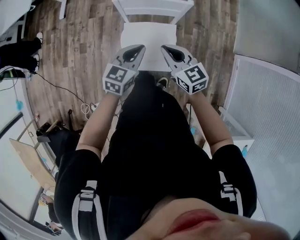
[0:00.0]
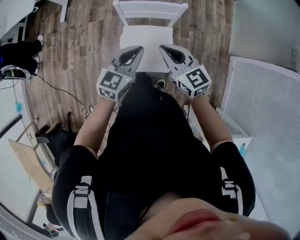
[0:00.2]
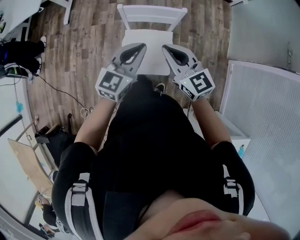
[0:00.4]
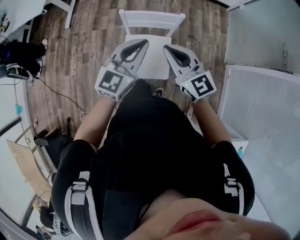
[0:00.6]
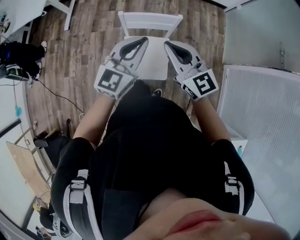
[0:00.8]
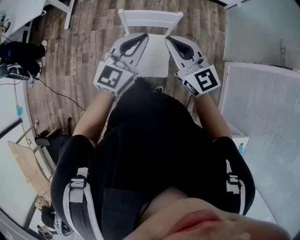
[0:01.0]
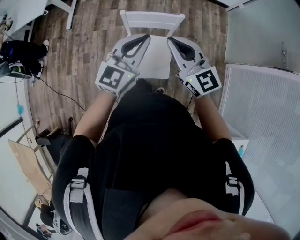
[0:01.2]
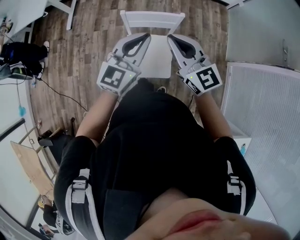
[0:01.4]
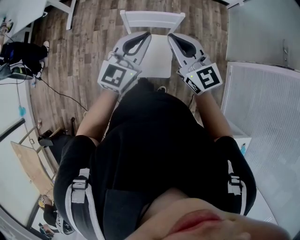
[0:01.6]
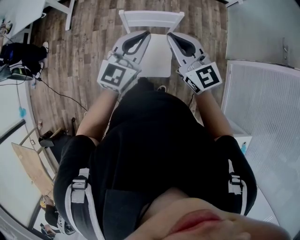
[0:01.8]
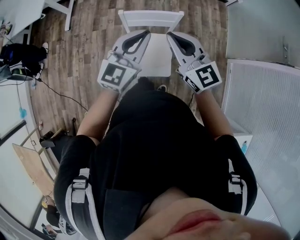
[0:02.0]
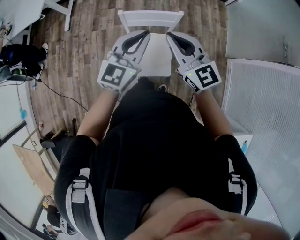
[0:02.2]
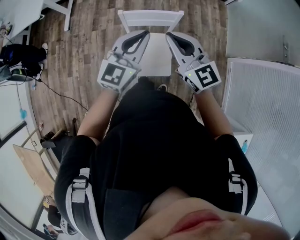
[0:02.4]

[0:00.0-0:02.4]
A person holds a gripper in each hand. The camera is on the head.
0:00.0 to 0:01.2: Both grippers travel together upward, some 25 cm. The right gripper turns by about 20 degrees, while the left gripper rotates about 30 degrees.
0:01.2 to 0:02.4: The grippers move only a little.

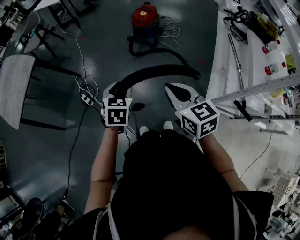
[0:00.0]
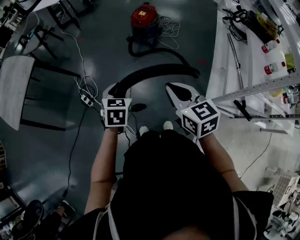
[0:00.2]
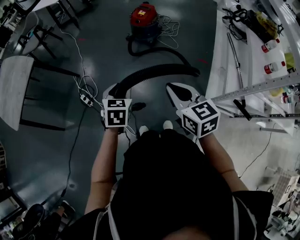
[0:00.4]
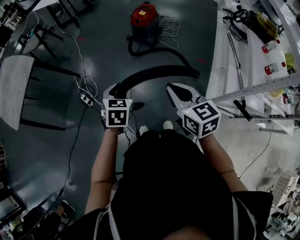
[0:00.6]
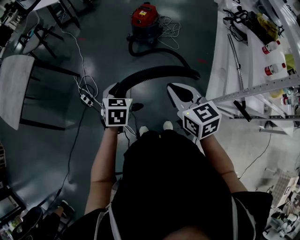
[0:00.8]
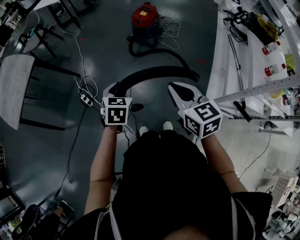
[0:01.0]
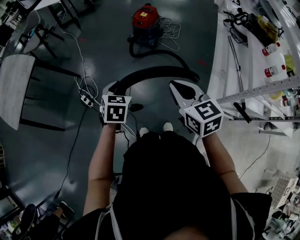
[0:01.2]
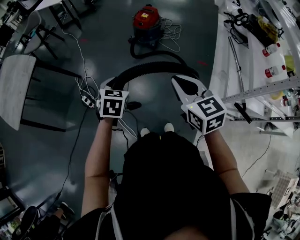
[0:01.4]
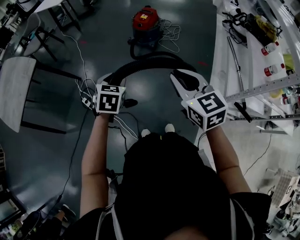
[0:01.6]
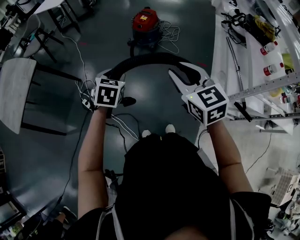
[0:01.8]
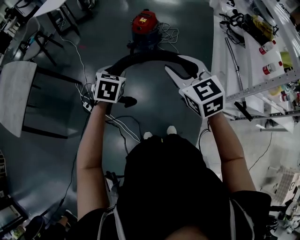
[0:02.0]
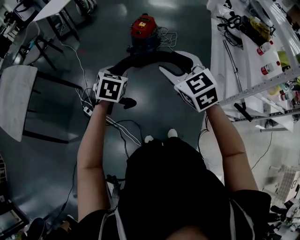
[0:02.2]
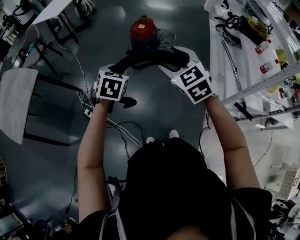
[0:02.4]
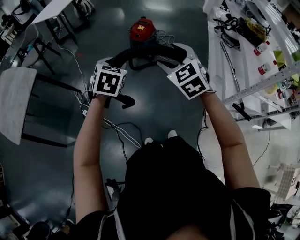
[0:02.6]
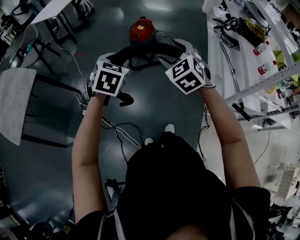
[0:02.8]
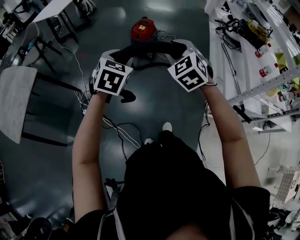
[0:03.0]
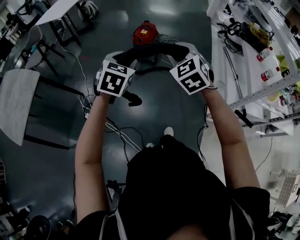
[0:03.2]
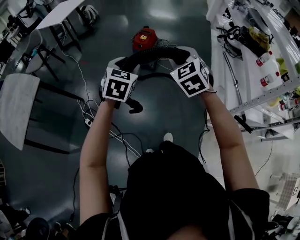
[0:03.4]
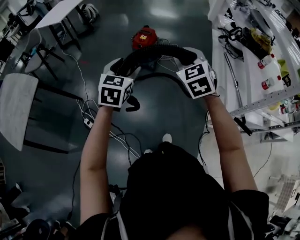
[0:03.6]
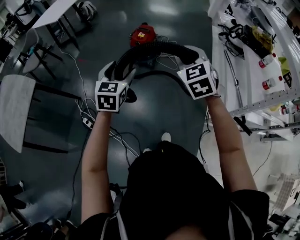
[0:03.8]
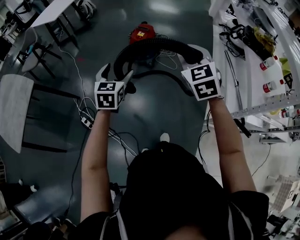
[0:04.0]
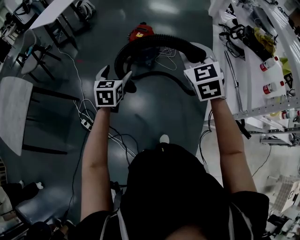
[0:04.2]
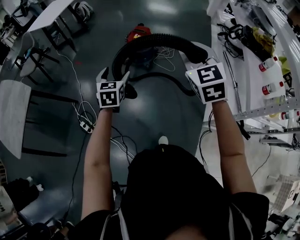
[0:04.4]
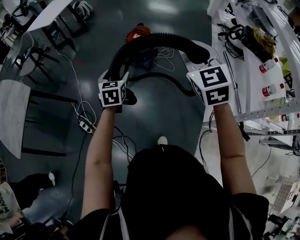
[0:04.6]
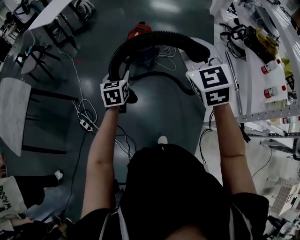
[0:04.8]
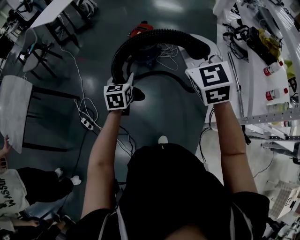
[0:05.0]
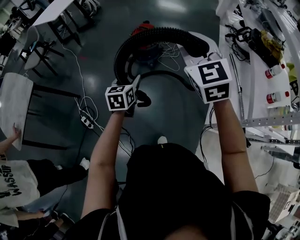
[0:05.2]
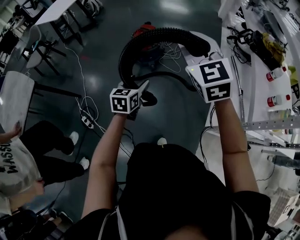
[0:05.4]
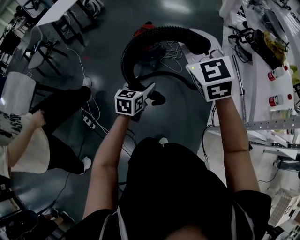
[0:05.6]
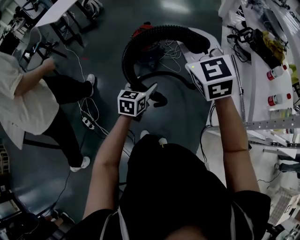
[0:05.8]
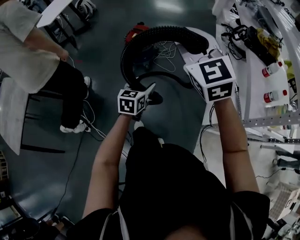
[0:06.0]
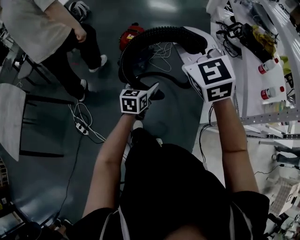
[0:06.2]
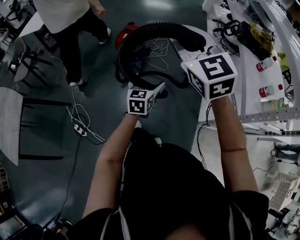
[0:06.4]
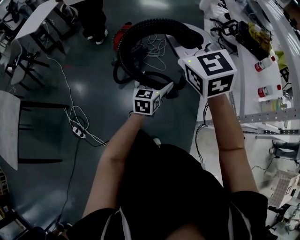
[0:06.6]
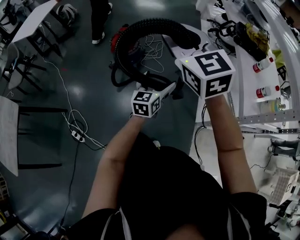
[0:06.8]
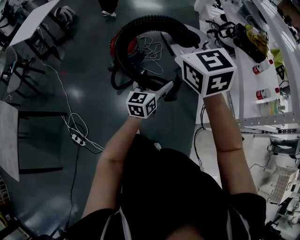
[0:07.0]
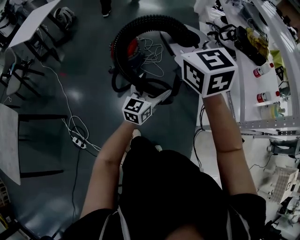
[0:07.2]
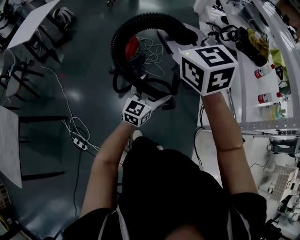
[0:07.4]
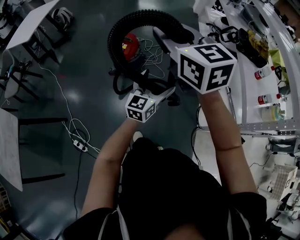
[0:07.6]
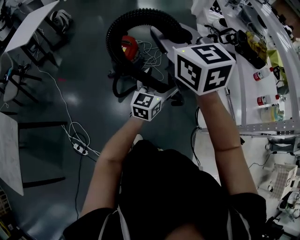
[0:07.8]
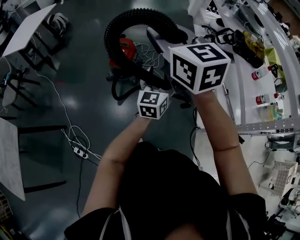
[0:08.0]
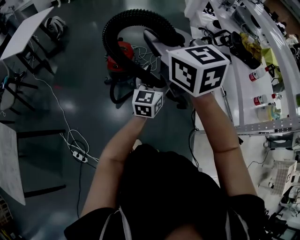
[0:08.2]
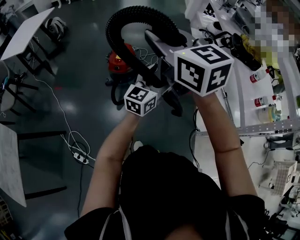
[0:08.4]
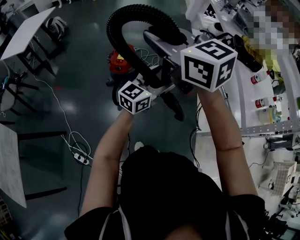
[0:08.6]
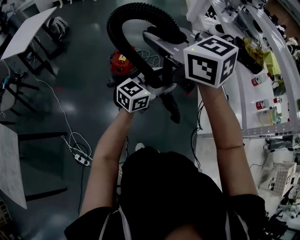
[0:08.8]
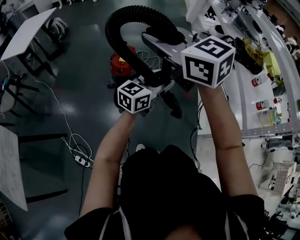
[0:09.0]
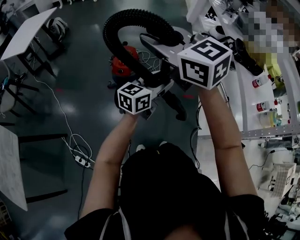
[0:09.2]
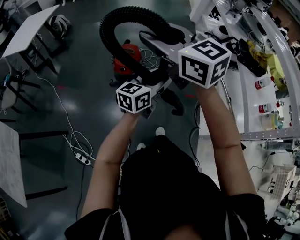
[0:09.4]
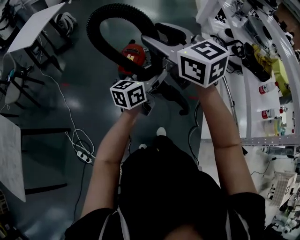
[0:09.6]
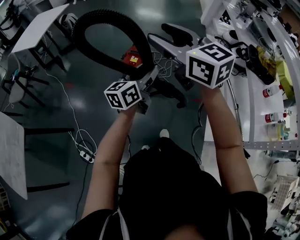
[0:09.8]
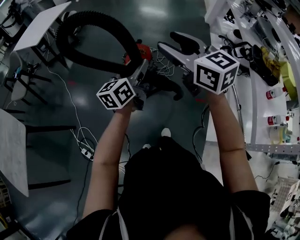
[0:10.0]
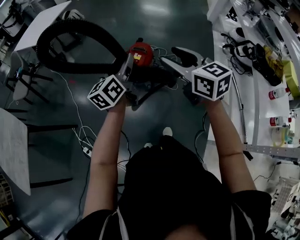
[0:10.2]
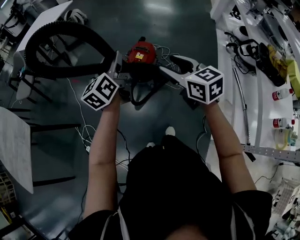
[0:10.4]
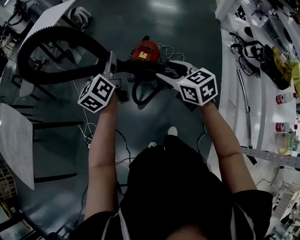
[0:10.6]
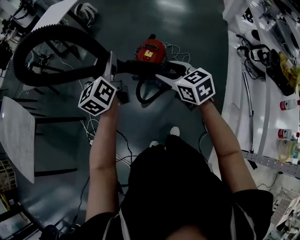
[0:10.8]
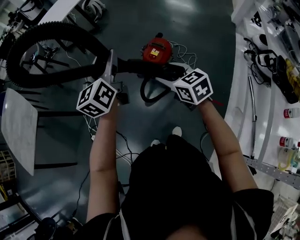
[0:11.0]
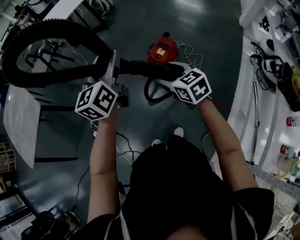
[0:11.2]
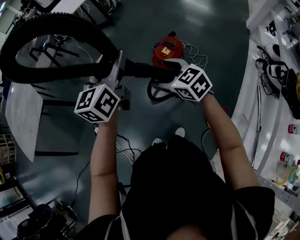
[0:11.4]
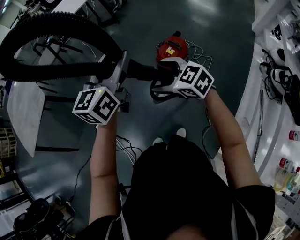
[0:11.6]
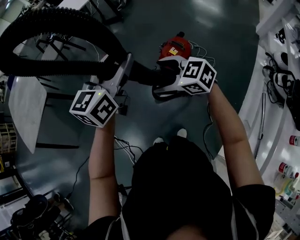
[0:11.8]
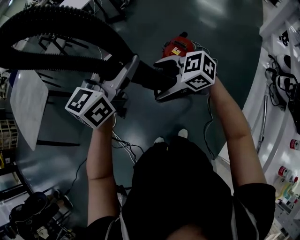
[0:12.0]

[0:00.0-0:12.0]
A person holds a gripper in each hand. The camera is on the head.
0:00.0 to 0:01.6: The right gripper ends up about 5 cm from where it was; the left gripper moves about 5 cm.
0:01.6 to 0:03.0: The right gripper goes approximately 10 cm forward, and swivels roughly 40 degrees, while the left gripper heads upward and forward, covering about 15 cm, and changes its angle by approximately 20 degrees.
0:03.0 to 0:04.4: The right gripper heads to the right and forward, covering roughly 15 cm, while the left gripper shifts about 20 cm forward and downward, swivels about 20 degrees, and opens.
0:04.4 to 0:06.0: The left gripper moves to the right, about 20 cm, and rotates approximately 20 degrees. Meanwhile the right gripper heads upward, covering roughly 5 cm.
0:06.0 to 0:07.6: The right gripper goes roughly 15 cm forward and to the left, and changes its angle by approximately 20 degrees, while the left gripper shifts roughly 15 cm forward and upward, swivels approximately 30 degrees, and opens.
0:07.6 to 0:09.0: The right gripper is displaced to the left by some 10 cm, while the left gripper heads upward, covering approximately 5 cm, turns by roughly 20 degrees, and closes up.
0:09.0 to 0:10.4: The right gripper shifts some 15 cm downward. Meanwhile the left gripper moves approximately 25 cm, and swivels about 60 degrees.
0:10.4 to 0:12.0: The left gripper goes some 10 cm upward, and changes its angle by some 20 degrees, while the right gripper shifts by roughly 15 cm, changes its angle by roughly 70 degrees, and opens its fingers.

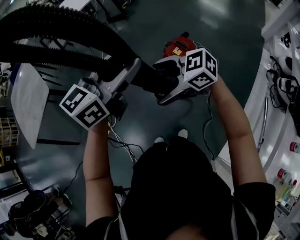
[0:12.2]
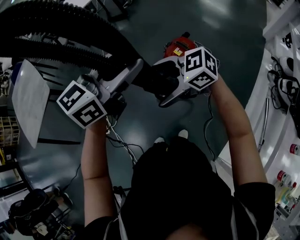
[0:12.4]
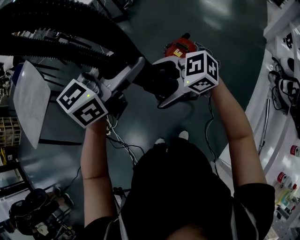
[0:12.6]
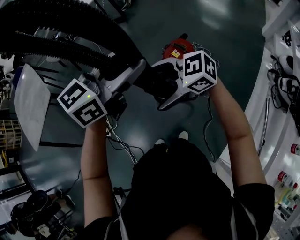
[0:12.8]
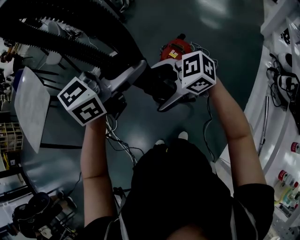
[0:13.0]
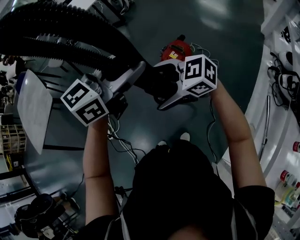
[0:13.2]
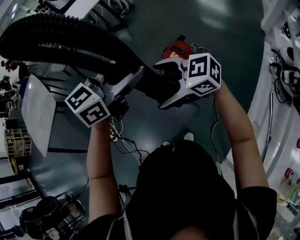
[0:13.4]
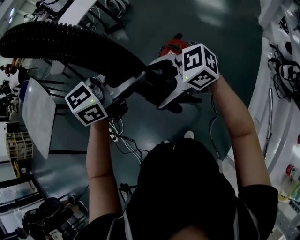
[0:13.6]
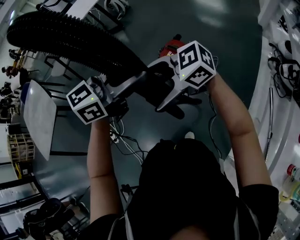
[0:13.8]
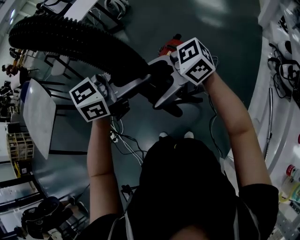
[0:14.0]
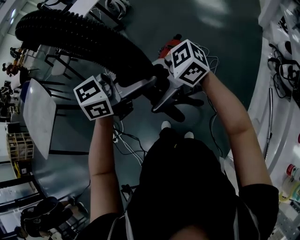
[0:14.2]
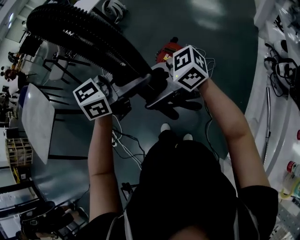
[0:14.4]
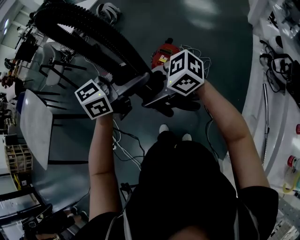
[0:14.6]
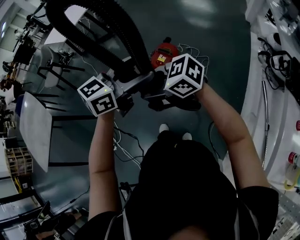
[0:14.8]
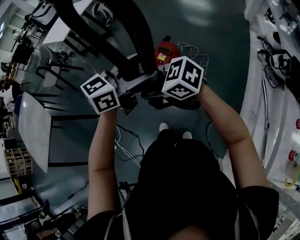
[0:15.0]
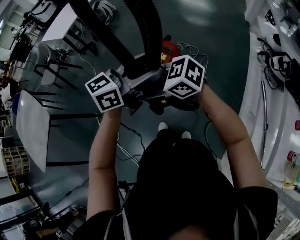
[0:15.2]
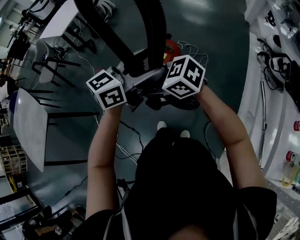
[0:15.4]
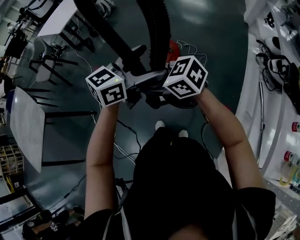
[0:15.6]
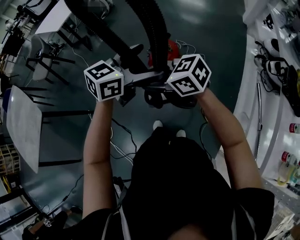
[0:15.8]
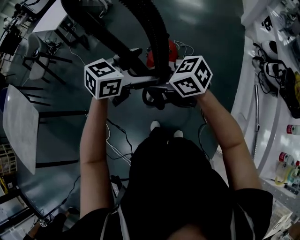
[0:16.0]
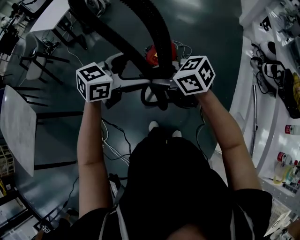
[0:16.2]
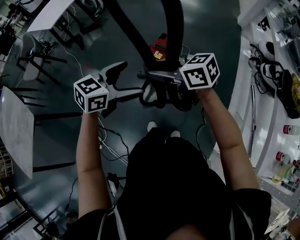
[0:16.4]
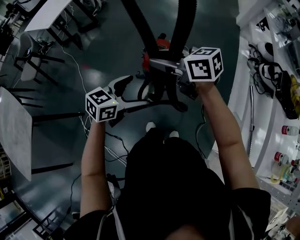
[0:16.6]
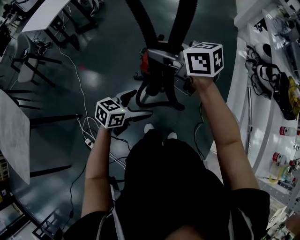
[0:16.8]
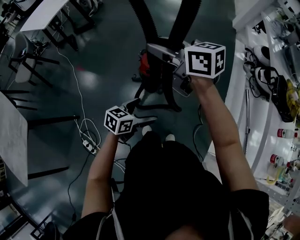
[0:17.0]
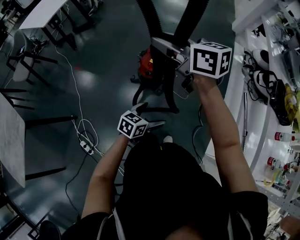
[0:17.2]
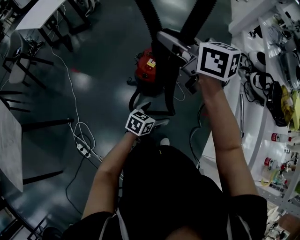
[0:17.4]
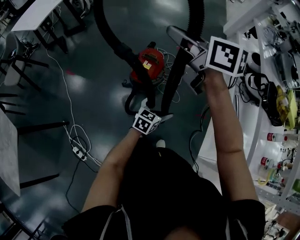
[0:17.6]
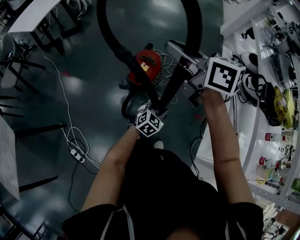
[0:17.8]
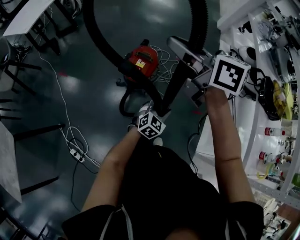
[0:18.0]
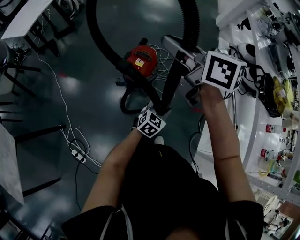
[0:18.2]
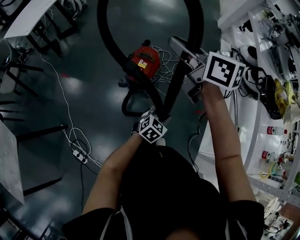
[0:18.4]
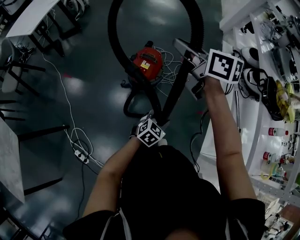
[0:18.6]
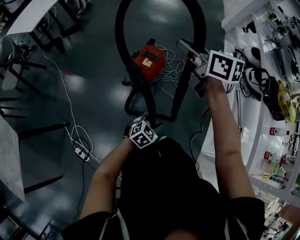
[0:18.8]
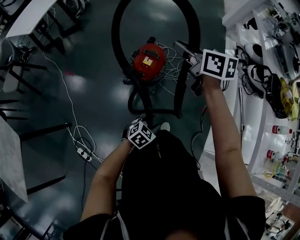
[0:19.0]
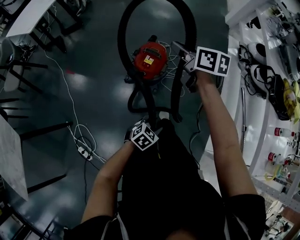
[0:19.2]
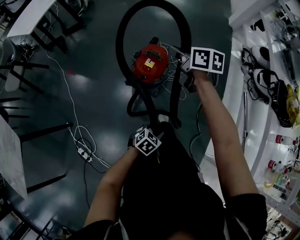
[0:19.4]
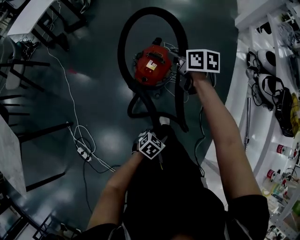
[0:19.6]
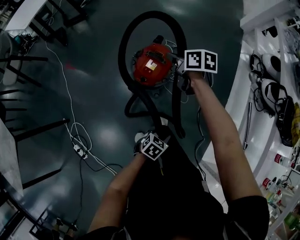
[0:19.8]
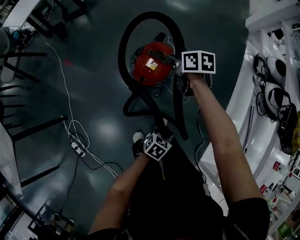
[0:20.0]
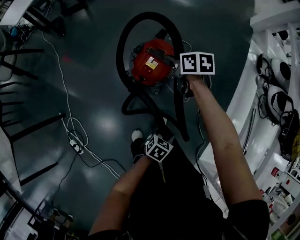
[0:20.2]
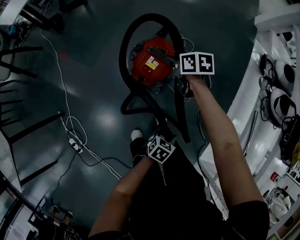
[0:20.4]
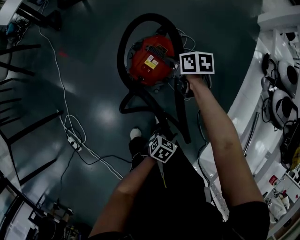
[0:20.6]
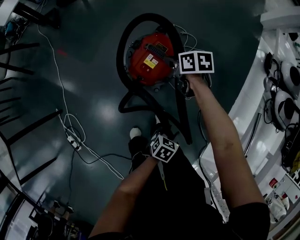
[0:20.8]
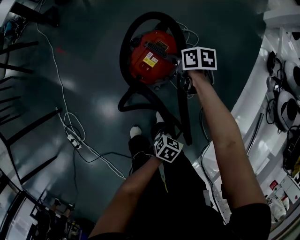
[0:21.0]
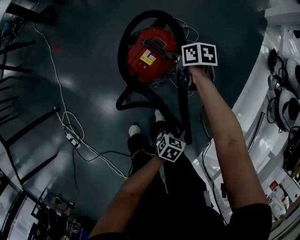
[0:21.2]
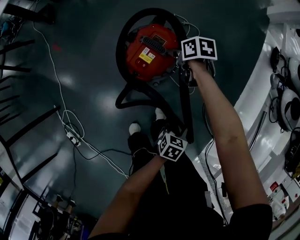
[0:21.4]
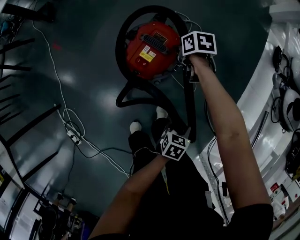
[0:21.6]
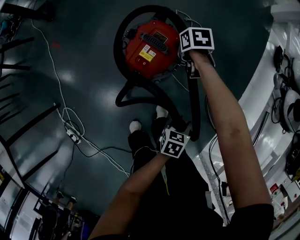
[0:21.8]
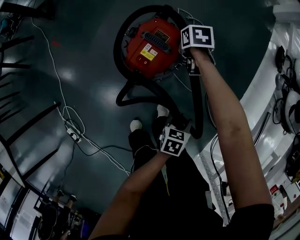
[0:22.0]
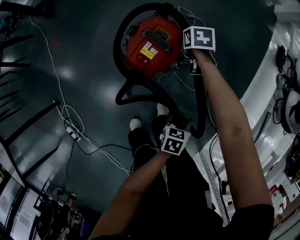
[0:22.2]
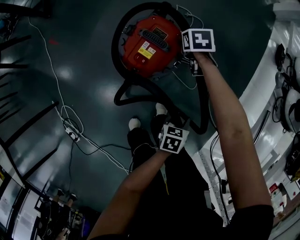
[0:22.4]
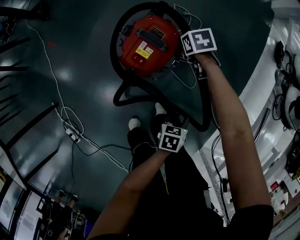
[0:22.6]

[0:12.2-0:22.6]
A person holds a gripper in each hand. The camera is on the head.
0:12.2 to 0:13.6: The right gripper changes place by approximately 10 cm. Meanwhile the left gripper moves some 10 cm.
0:13.6 to 0:15.2: The left gripper shifts by approximately 5 cm; the right gripper changes place by some 5 cm, rotates some 20 degrees, and closes its fingers.
0:15.2 to 0:16.6: The left gripper shifts some 15 cm downward, and opens its fingers, while the right gripper ends up about 15 cm from where it was, and turns by roughly 30 degrees.
0:16.6 to 0:18.2: The left gripper is displaced downward and to the right by roughly 20 cm, and closes its fingers. The right gripper goes about 10 cm upward and forward, and rotates some 30 degrees.
0:18.2 to 0:19.6: The left gripper heads downward and backward, covering roughly 15 cm, and turns by about 30 degrees. The right gripper is displaced downward and forward by about 30 cm, and rotates some 20 degrees.
0:19.6 to 0:21.2: The right gripper goes roughly 30 cm downward, and turns by approximately 20 degrees; the left gripper ends up roughly 25 cm from where it was, and swivels approximately 30 degrees.
0:21.2 to 0:22.6: The right gripper goes approximately 5 cm downward, and swivels roughly 30 degrees. The left gripper moves roughly 5 cm.
